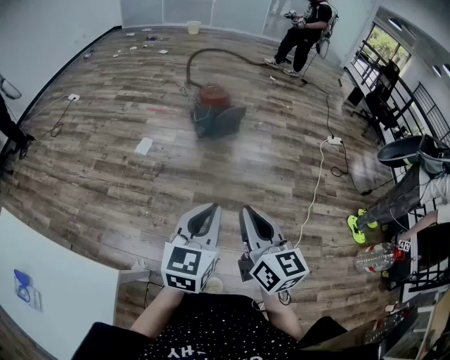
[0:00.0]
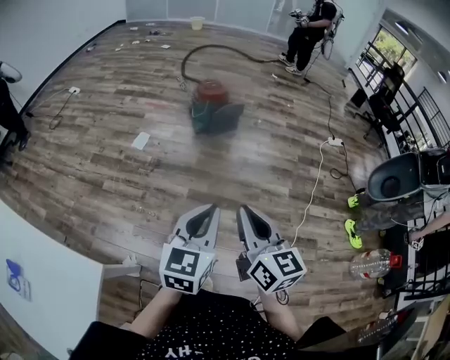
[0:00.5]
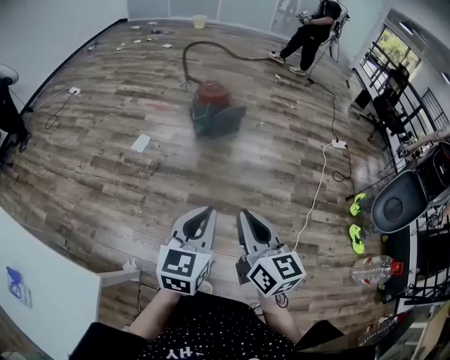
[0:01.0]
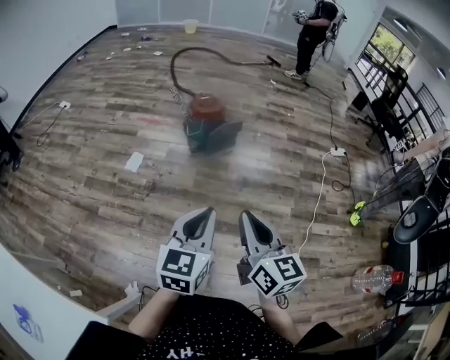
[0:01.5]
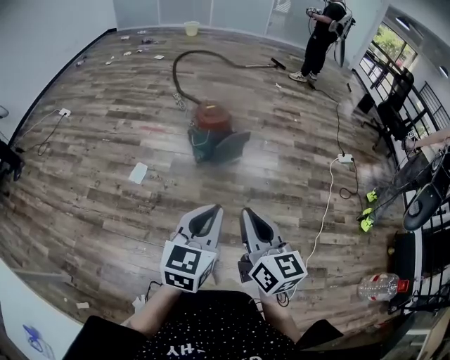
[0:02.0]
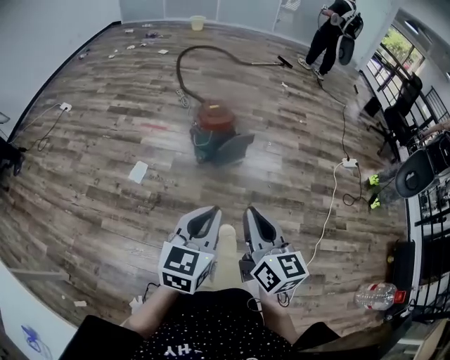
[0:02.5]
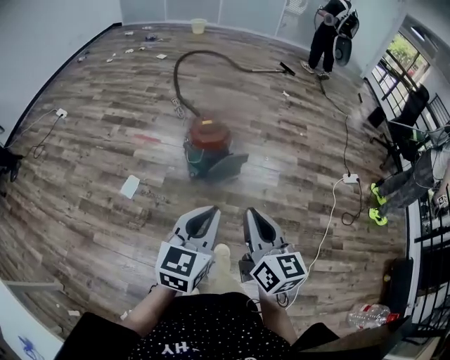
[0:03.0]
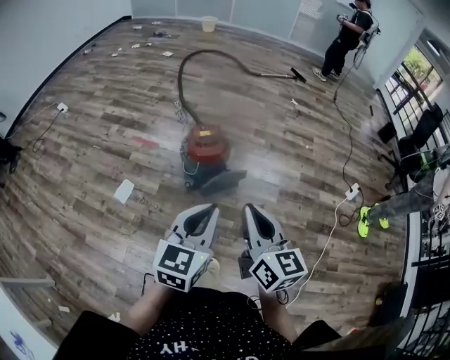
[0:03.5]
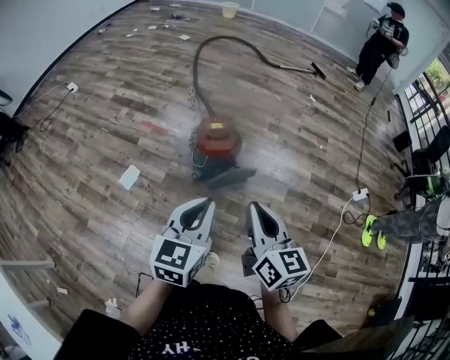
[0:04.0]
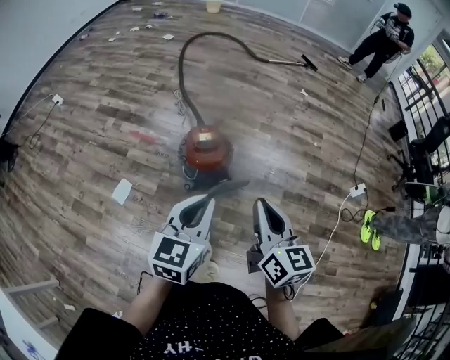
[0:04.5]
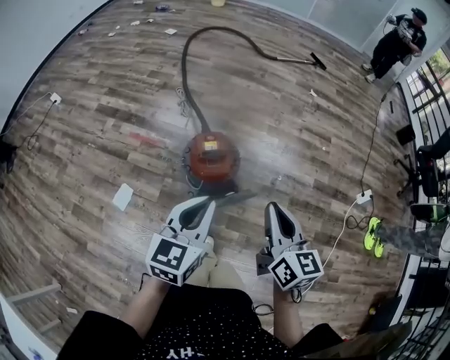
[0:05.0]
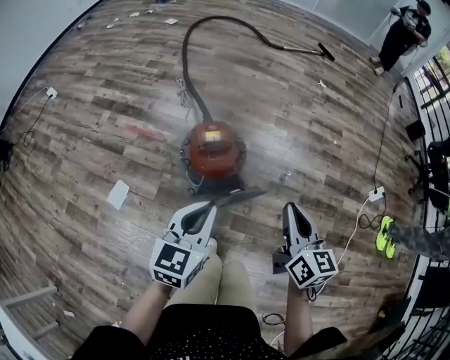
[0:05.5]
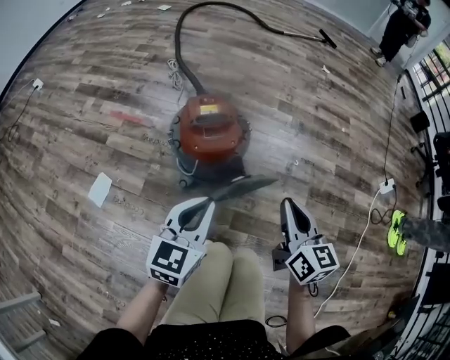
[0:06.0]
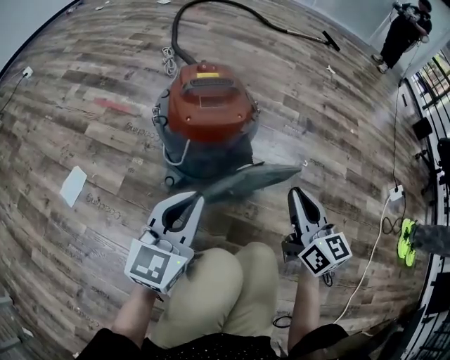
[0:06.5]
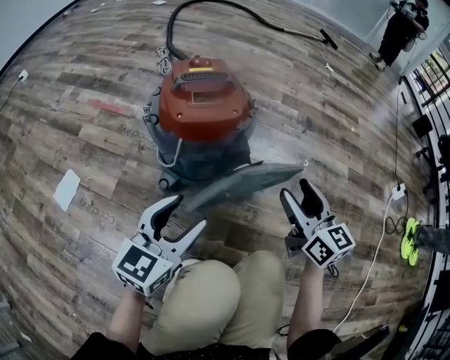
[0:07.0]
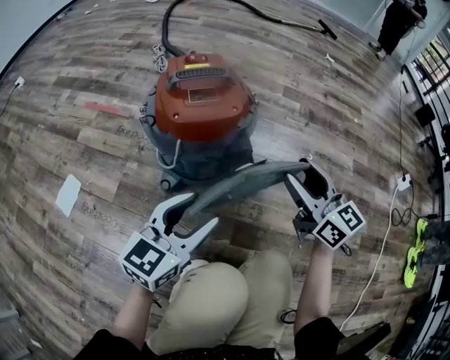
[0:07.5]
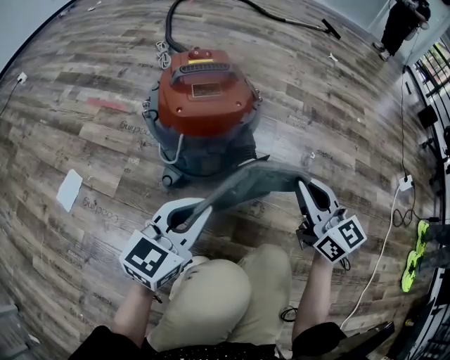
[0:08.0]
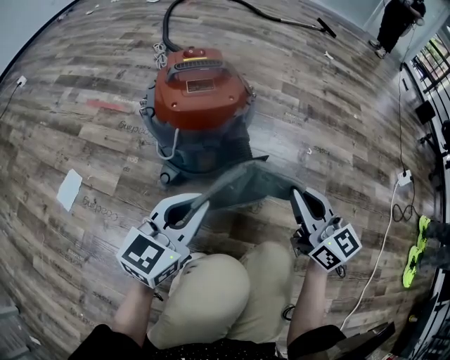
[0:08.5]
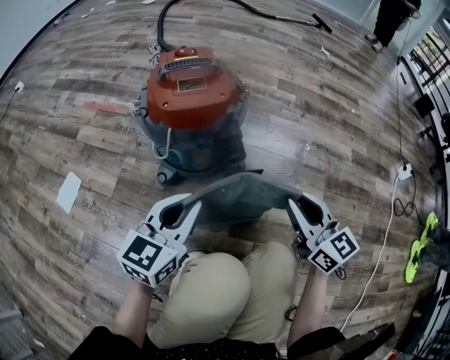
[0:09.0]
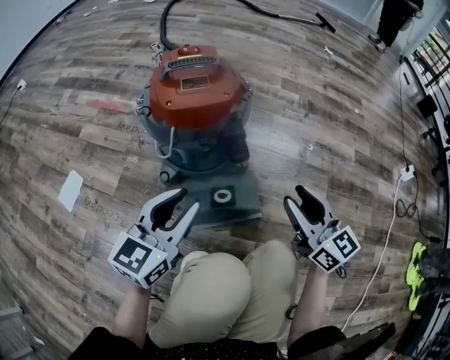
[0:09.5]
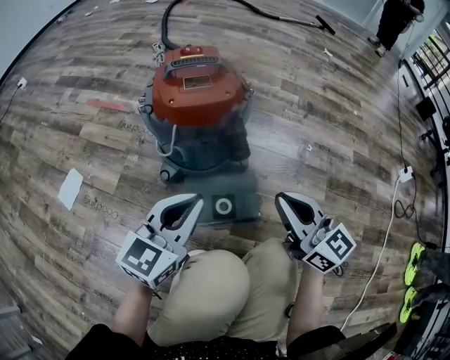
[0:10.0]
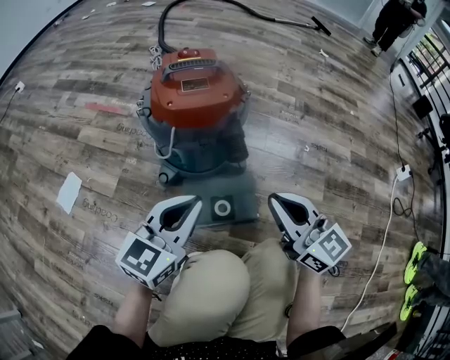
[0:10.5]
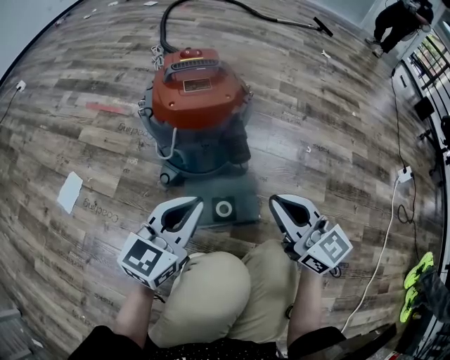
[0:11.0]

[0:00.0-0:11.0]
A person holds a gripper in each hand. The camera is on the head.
0:00.0 to 0:02.0: Both grippers travel together forward, approximately 30 cm.
0:02.0 to 0:03.5: The grippers both shift forward by approximately 35 cm.
0:03.5 to 0:05.5: Both grippers travel together forward and downward, some 30 cm.
0:05.5 to 0:07.5: Both grippers move downward, roughly 40 cm. The right gripper rotates approximately 20 degrees, and opens its fingers. The left gripper opens.
0:07.5 to 0:09.0: The right gripper shifts some 10 cm backward, and closes, while the left gripper closes.
0:09.0 to 0:11.0: The right gripper goes some 5 cm to the left, and opens and closes again. The left gripper opens, then closes once more.

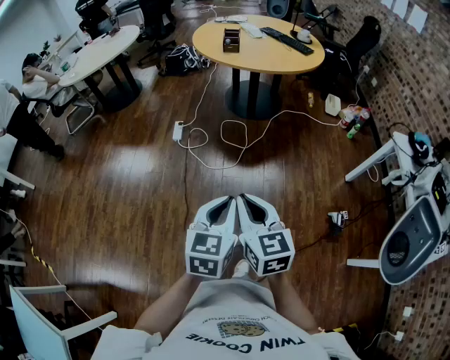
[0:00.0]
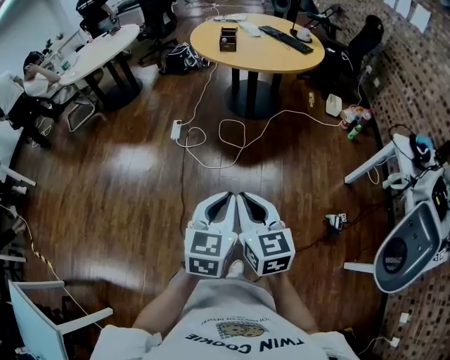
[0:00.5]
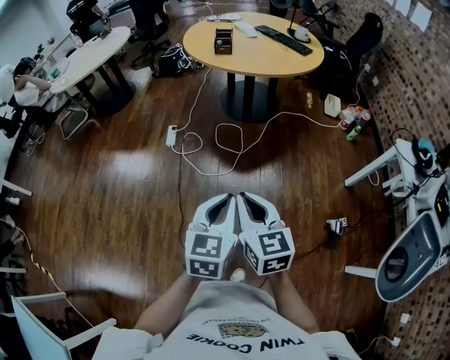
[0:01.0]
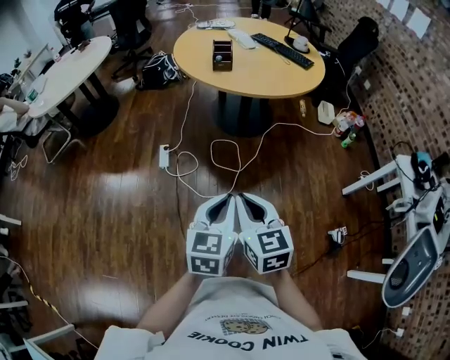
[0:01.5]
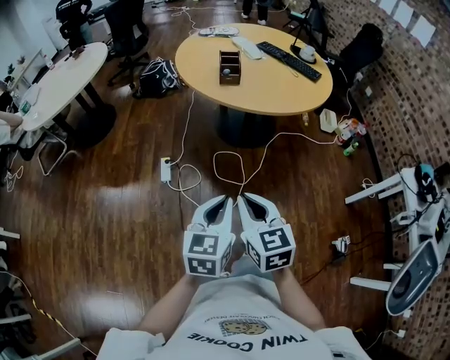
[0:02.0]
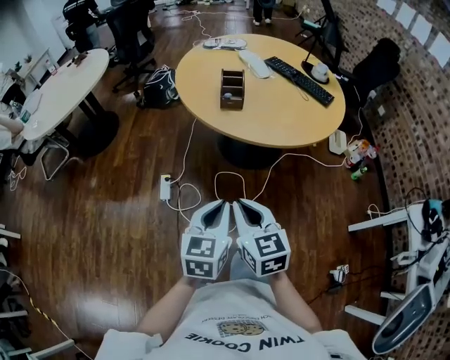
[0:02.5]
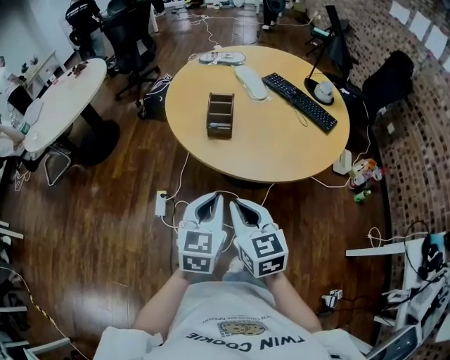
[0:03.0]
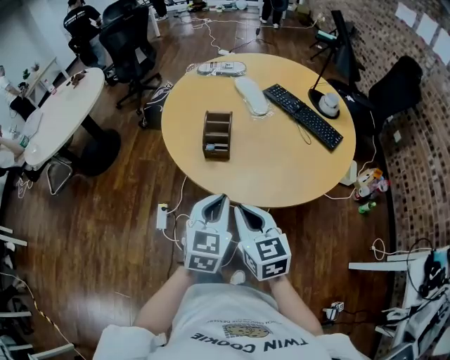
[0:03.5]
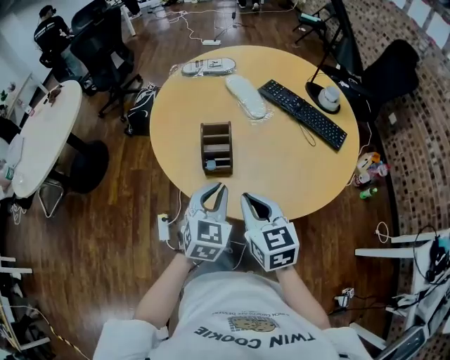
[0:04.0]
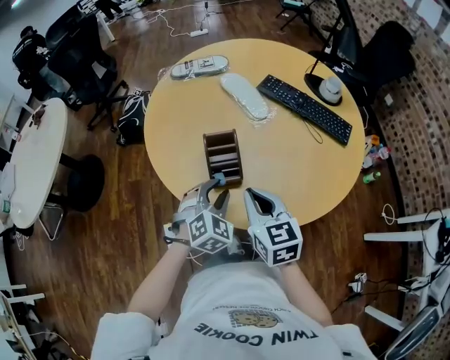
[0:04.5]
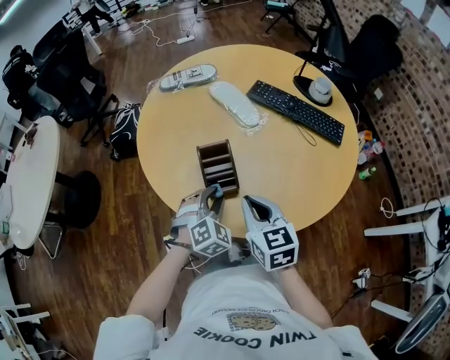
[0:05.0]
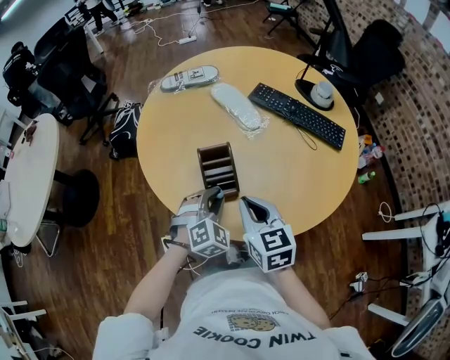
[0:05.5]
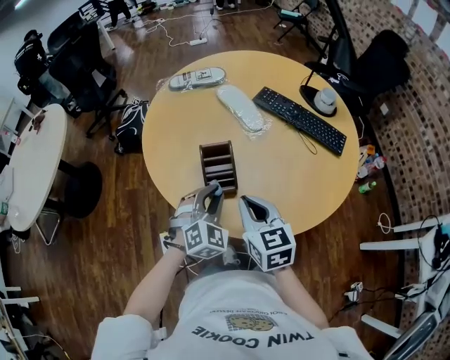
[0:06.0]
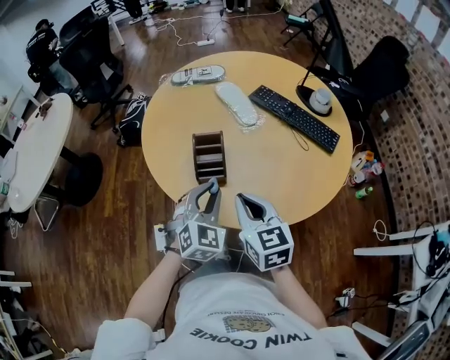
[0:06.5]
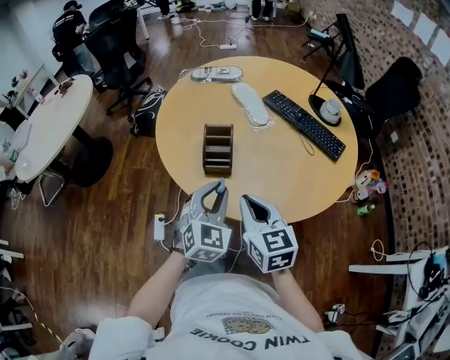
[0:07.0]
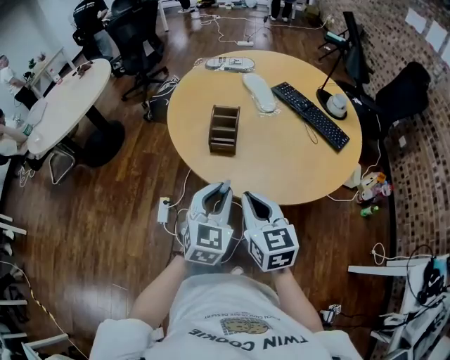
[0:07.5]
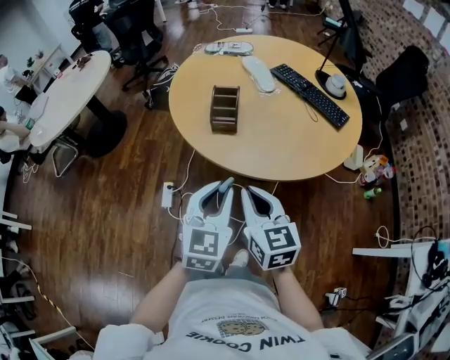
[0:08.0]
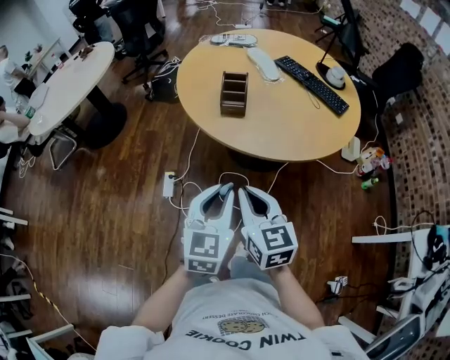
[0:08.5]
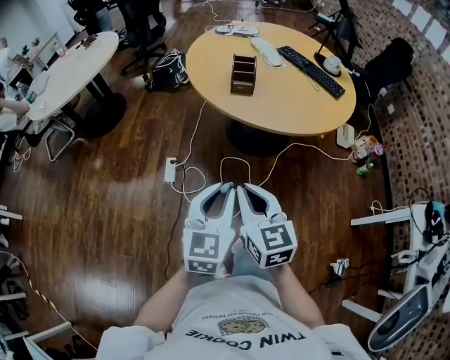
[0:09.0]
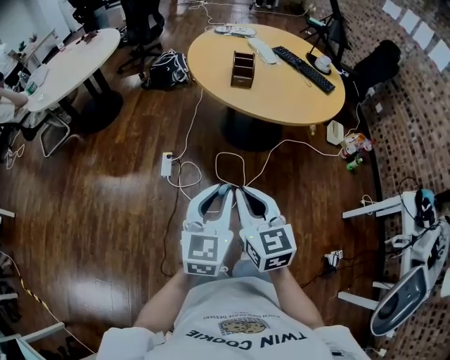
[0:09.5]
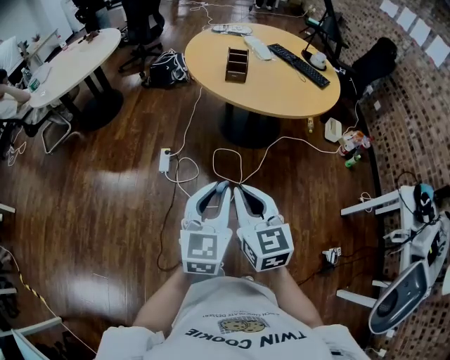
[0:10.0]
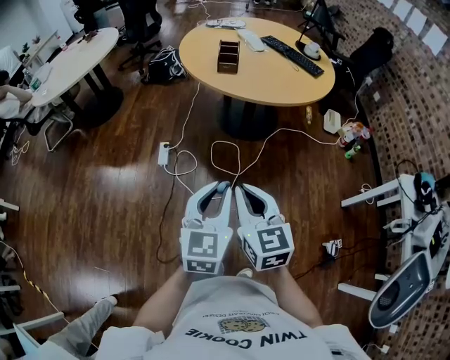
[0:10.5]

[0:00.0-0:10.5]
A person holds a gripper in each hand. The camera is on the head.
0:00.0 to 0:02.0: The two grippers travel together, forward, roughly 40 cm.
0:02.0 to 0:04.0: The two grippers travel together, forward, some 50 cm. The left gripper changes its angle by some 30 degrees.
0:04.0 to 0:06.5: The left gripper moves roughly 10 cm downward and comes back, and opens, then closes once more; the right gripper reaches about 10 cm forward, then returns.
0:06.5 to 0:08.5: The grippers both shift backward by roughly 30 cm. The left gripper turns by about 30 degrees.
0:08.5 to 0:10.5: The grippers both shift backward by roughly 30 cm.

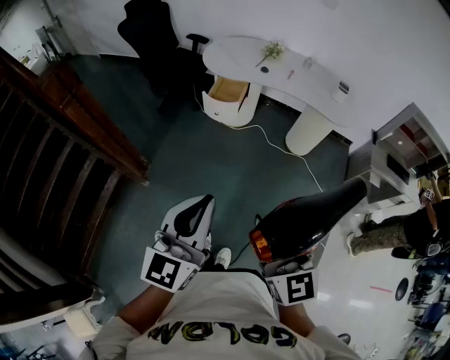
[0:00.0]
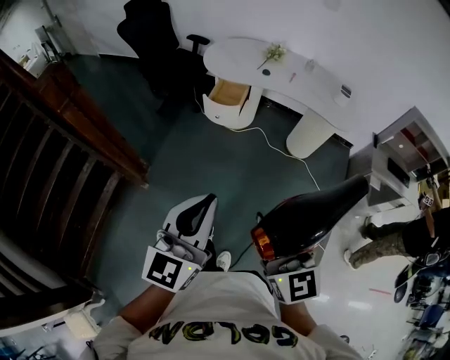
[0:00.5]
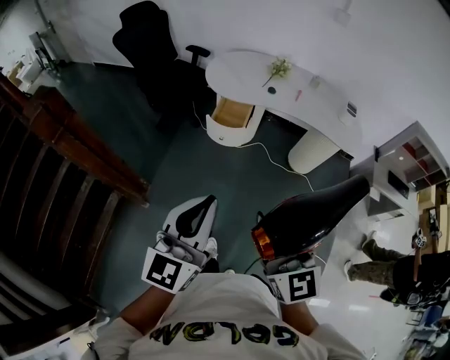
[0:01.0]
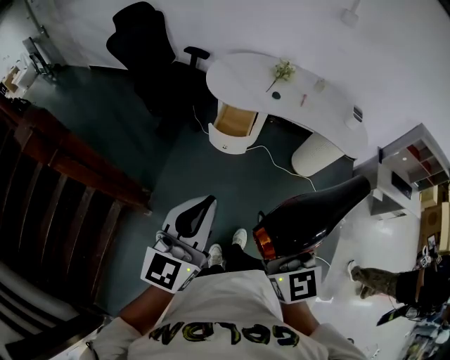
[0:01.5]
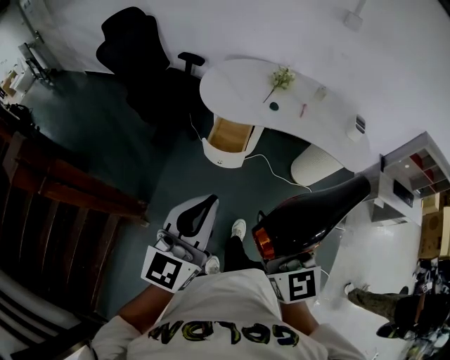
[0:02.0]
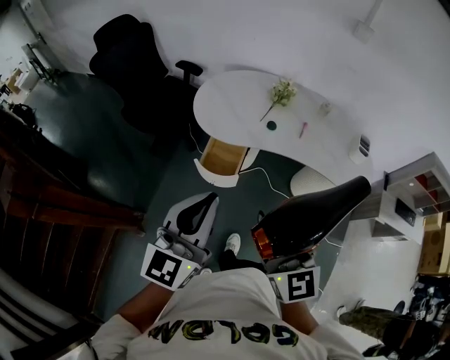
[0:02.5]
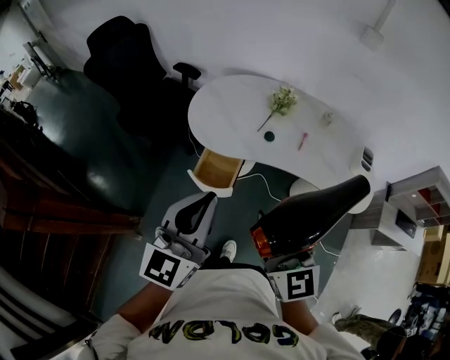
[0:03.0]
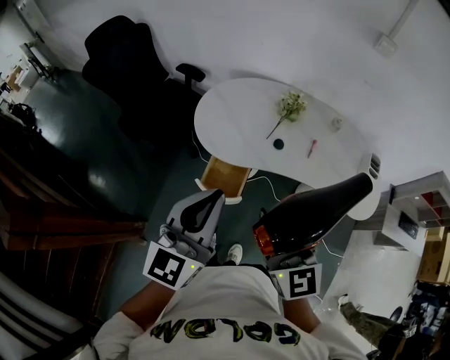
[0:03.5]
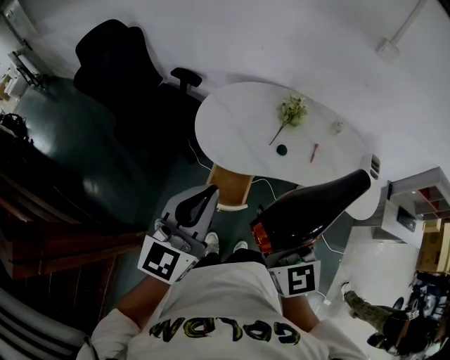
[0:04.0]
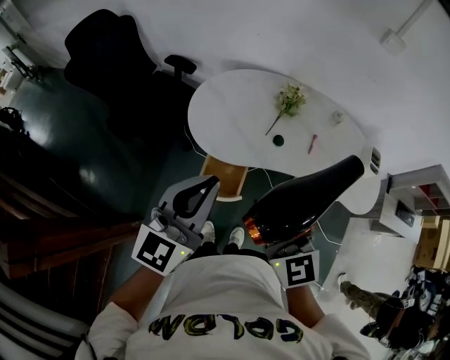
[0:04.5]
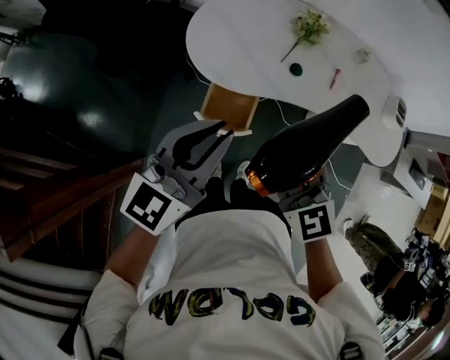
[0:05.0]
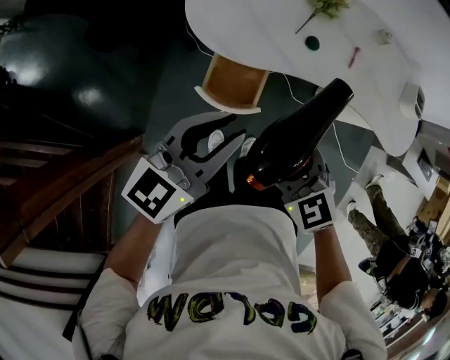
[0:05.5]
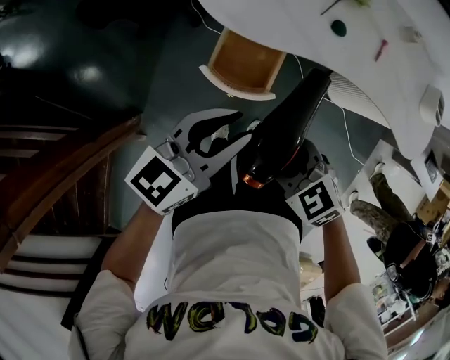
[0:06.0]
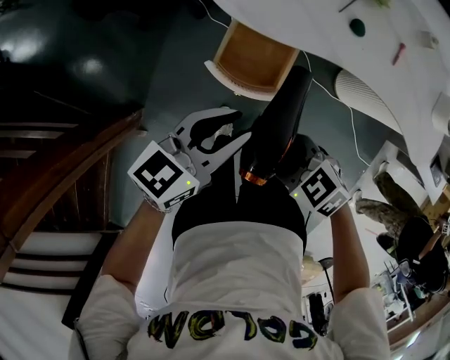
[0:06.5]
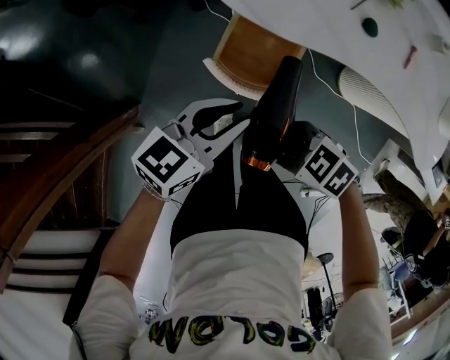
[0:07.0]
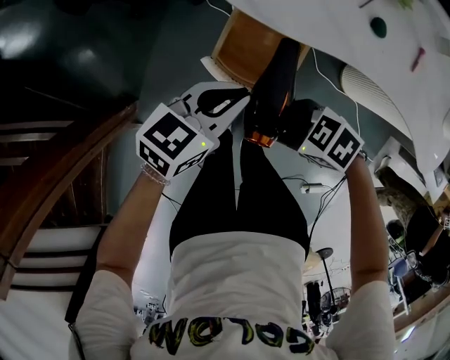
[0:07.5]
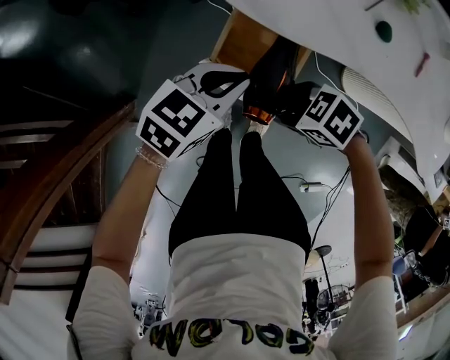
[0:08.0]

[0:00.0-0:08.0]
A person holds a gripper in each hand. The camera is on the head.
0:00.0 to 0:02.0: Both grippers travel together forward, approximately 35 cm.
0:02.0 to 0:04.0: The grippers both shift forward by roughly 30 cm.
0:04.0 to 0:06.0: Both grippers move downward, roughly 30 cm. The left gripper rotates about 30 degrees, and opens. The right gripper tilts its fingers some 50 degrees downward.
0:06.0 to 0:08.0: The two grippers go approximately 20 cm downward. The right gripper rotates approximately 30 degrees. The left gripper turns by some 20 degrees, and closes up.
